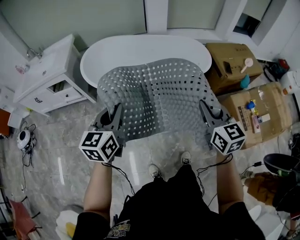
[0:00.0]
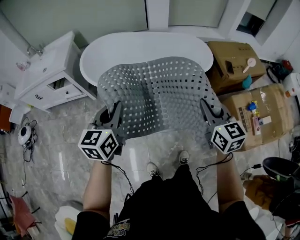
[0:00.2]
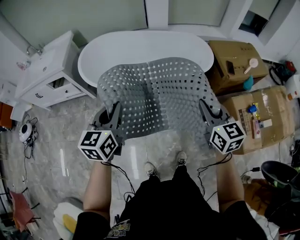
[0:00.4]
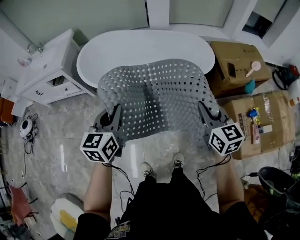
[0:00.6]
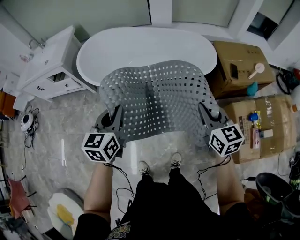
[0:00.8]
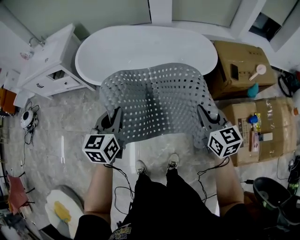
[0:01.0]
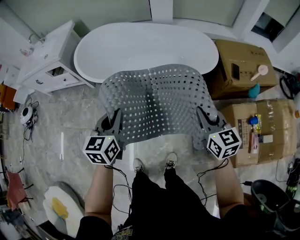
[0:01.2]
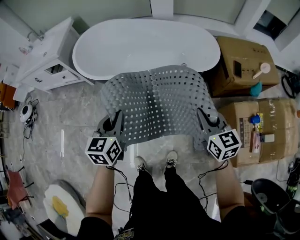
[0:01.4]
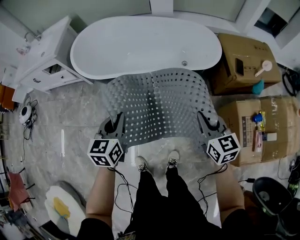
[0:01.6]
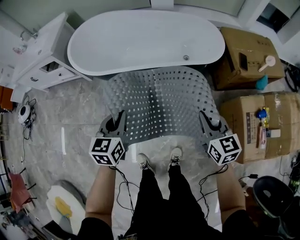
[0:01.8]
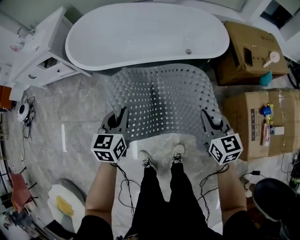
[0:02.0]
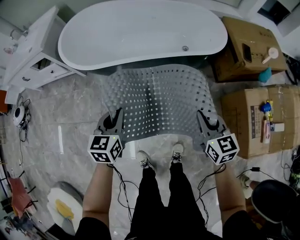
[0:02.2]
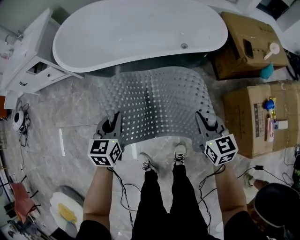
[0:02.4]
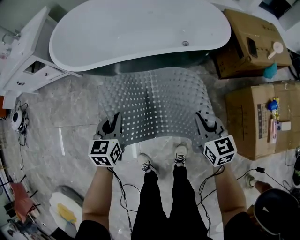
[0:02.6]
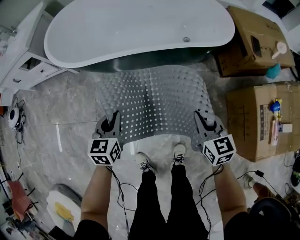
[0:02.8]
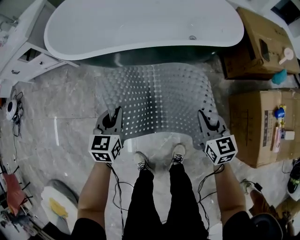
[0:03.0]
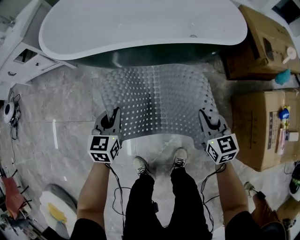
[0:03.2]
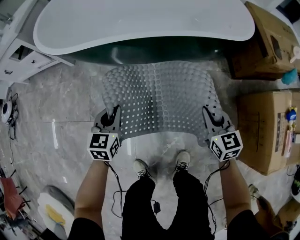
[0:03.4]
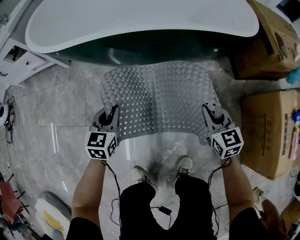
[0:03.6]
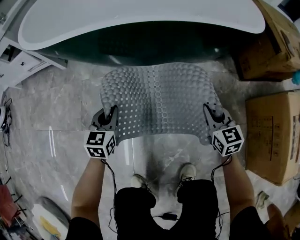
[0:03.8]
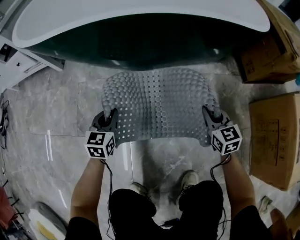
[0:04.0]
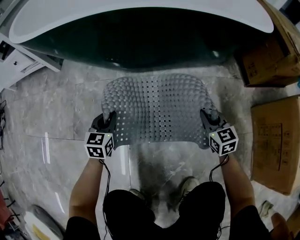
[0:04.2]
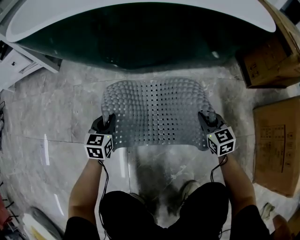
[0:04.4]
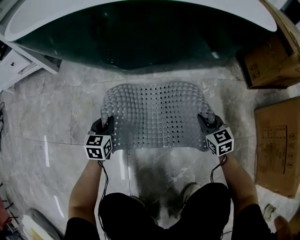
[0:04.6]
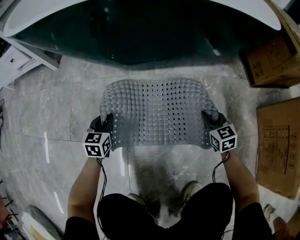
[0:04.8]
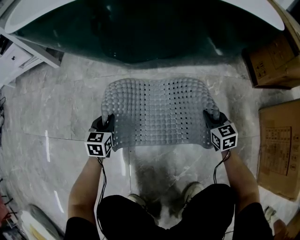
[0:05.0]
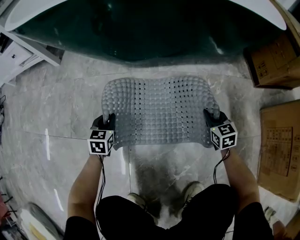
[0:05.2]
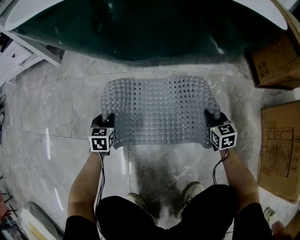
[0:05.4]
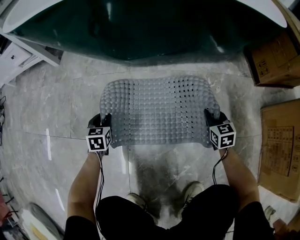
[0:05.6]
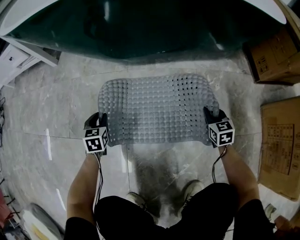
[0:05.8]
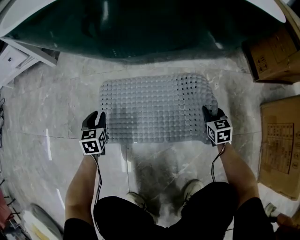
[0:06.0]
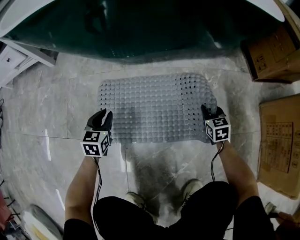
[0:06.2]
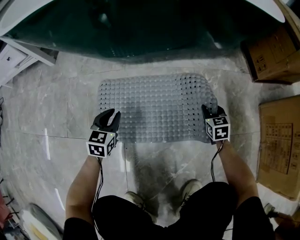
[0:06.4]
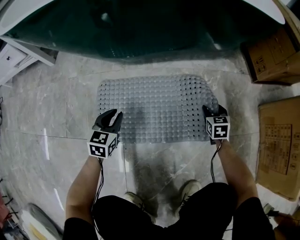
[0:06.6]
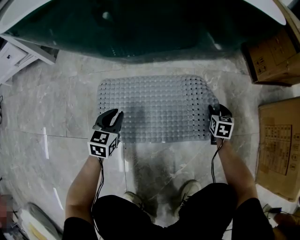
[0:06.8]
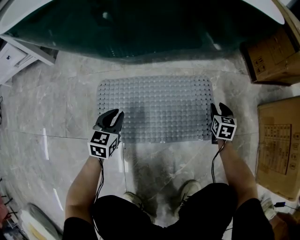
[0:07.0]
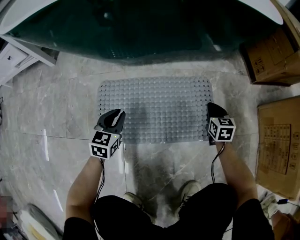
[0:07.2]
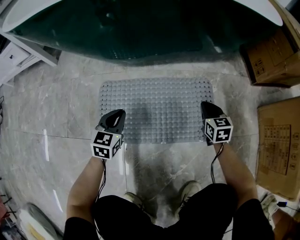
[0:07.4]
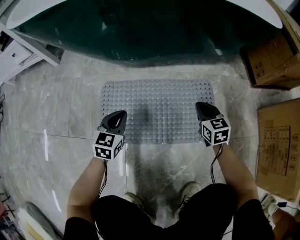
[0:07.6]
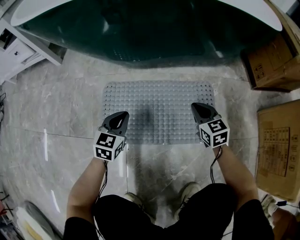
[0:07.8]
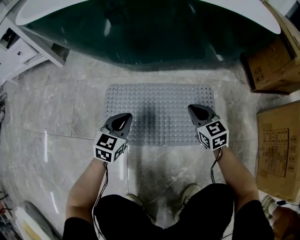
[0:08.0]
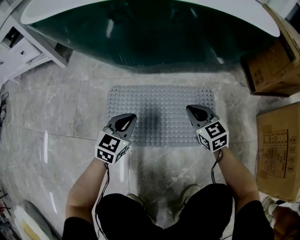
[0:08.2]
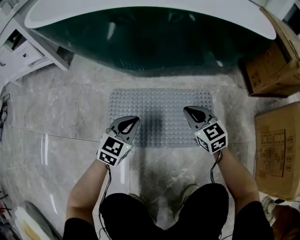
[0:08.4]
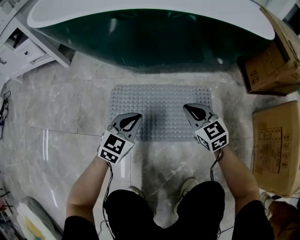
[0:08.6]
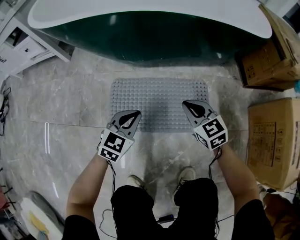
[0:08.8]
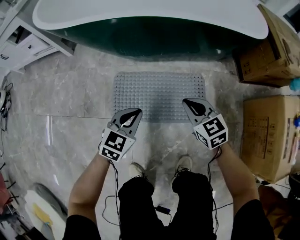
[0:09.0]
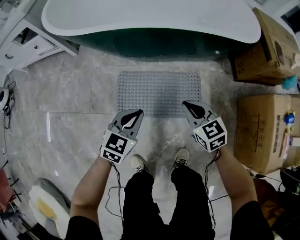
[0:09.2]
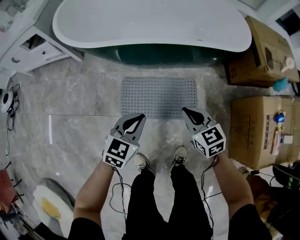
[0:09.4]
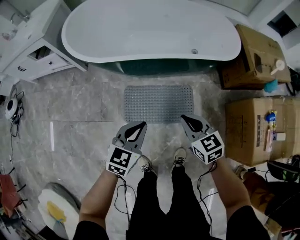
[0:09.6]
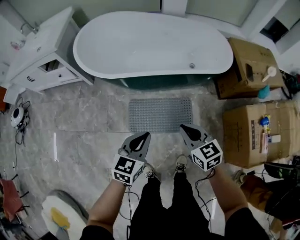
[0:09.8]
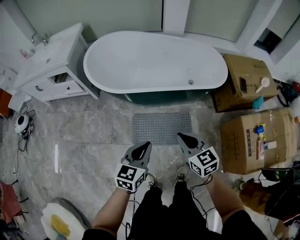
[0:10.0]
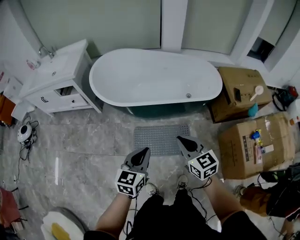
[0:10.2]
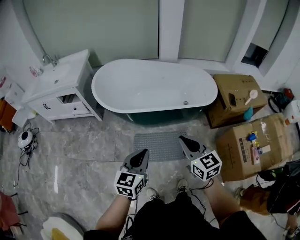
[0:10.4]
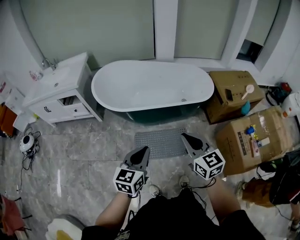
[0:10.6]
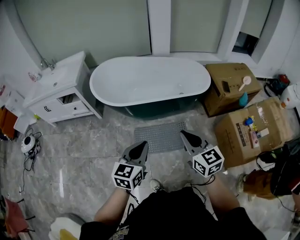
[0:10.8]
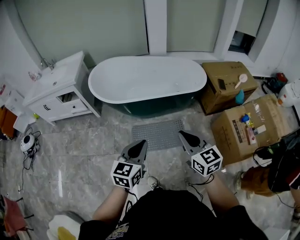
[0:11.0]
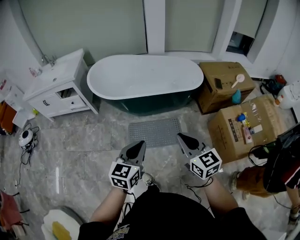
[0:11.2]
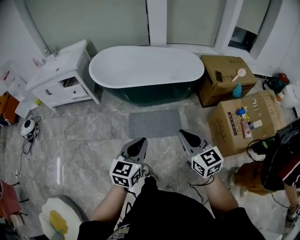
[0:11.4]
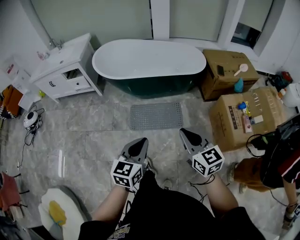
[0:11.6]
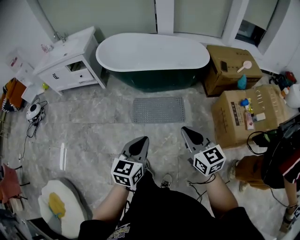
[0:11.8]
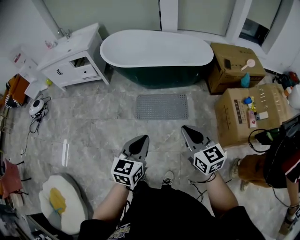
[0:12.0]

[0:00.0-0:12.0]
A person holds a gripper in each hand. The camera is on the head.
0:00.0 to 0:01.6: Both grippers move downward and to the right, some 25 cm.
0:01.6 to 0:03.0: The grippers both shift downward by approximately 25 cm.
0:03.0 to 0:04.4: The two grippers go about 40 cm downward.
0:04.4 to 0:06.0: The right gripper shifts some 10 cm downward, while the left gripper travels to the left and downward by approximately 10 cm, and opens.
0:06.0 to 0:07.6: The left gripper travels to the right by roughly 10 cm, rotates some 20 degrees, and closes, while the right gripper moves upward, approximately 5 cm, and opens and closes again.
0:07.6 to 0:09.0: Both grippers move upward, approximately 25 cm.
0:09.0 to 0:10.4: Both grippers travel together upward, roughly 60 cm. The right gripper rotates about 20 degrees. The left gripper rotates roughly 20 degrees.
0:10.4 to 0:12.0: The two grippers go roughly 35 cm backward.

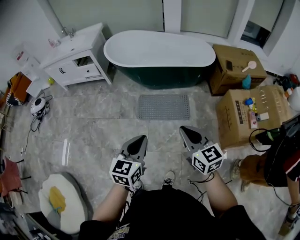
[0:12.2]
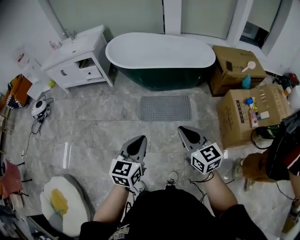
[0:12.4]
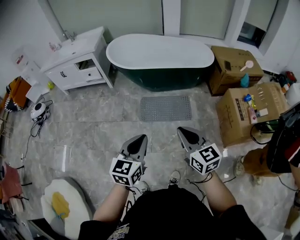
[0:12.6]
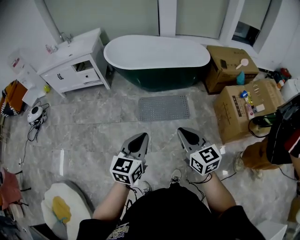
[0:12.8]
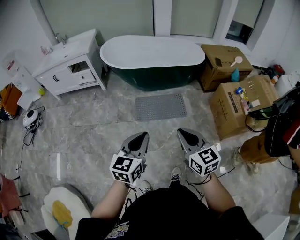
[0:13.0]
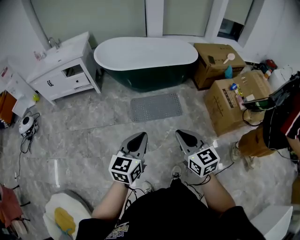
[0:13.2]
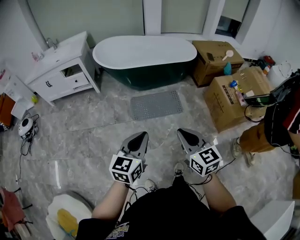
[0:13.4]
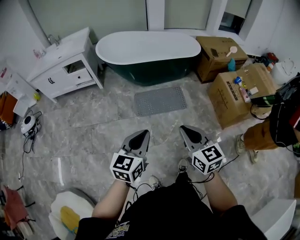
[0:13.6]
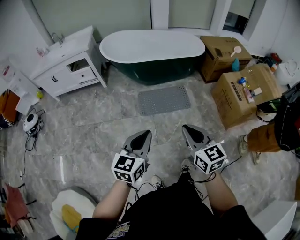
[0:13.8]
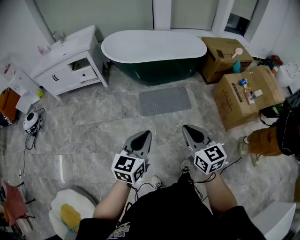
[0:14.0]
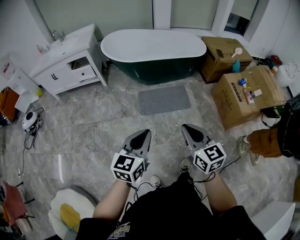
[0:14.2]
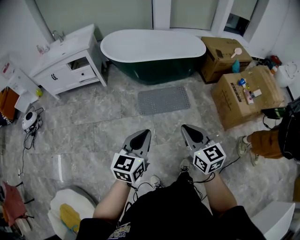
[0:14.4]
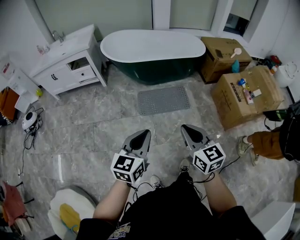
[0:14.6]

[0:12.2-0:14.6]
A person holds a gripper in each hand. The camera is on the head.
0:12.2 to 0:13.4: The grippers both shift to the left and backward by some 15 cm.
0:13.4 to 0:14.6: The grippers stay close to where they were, moving slightly.

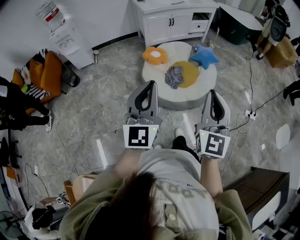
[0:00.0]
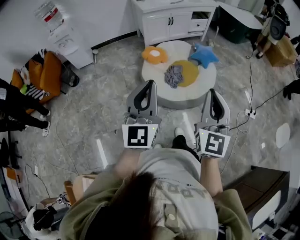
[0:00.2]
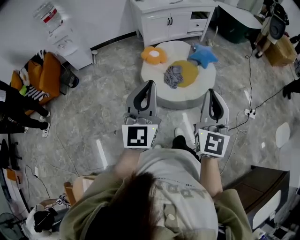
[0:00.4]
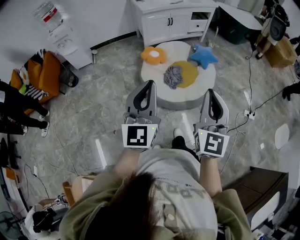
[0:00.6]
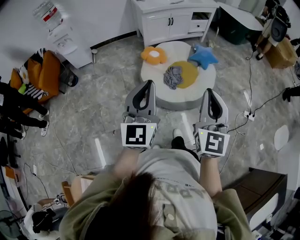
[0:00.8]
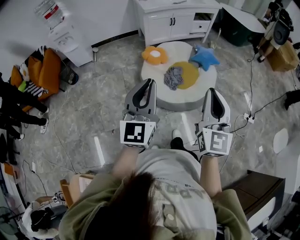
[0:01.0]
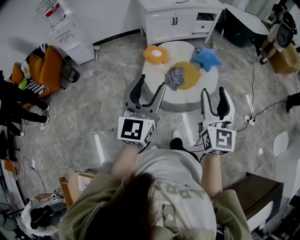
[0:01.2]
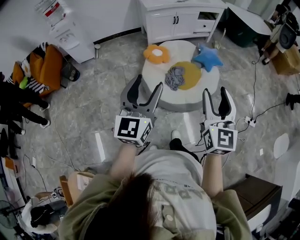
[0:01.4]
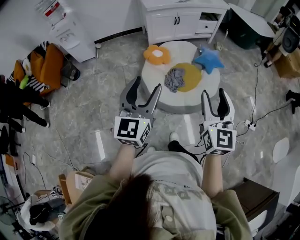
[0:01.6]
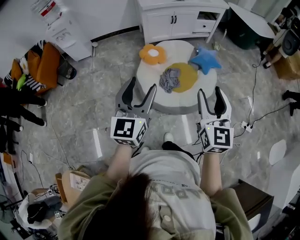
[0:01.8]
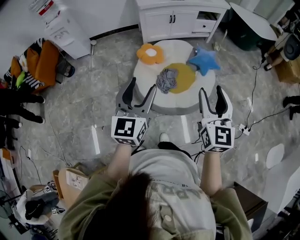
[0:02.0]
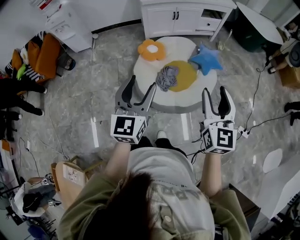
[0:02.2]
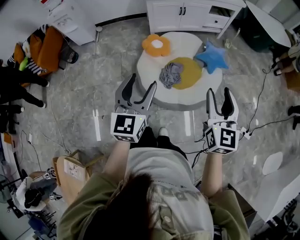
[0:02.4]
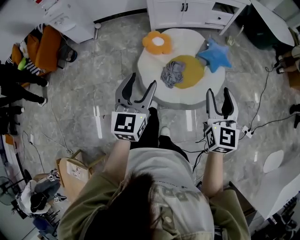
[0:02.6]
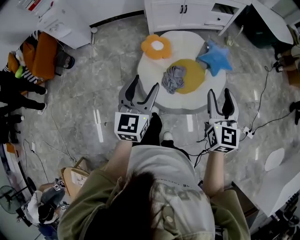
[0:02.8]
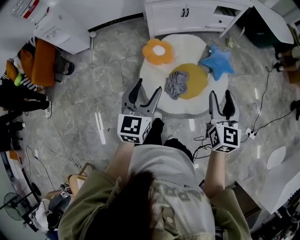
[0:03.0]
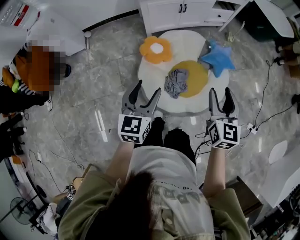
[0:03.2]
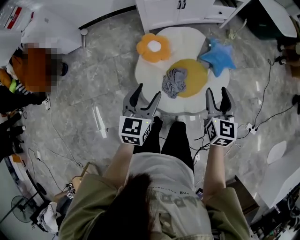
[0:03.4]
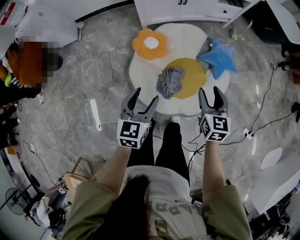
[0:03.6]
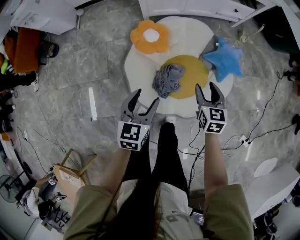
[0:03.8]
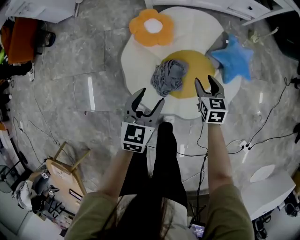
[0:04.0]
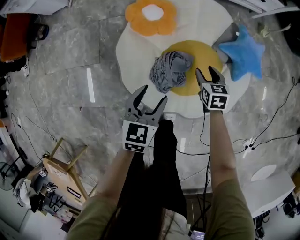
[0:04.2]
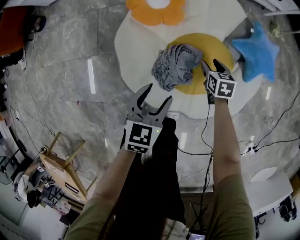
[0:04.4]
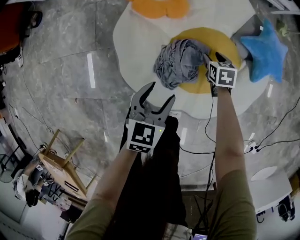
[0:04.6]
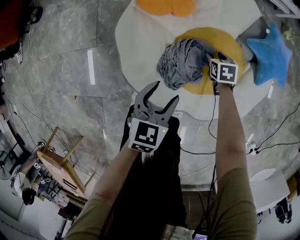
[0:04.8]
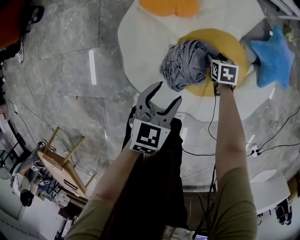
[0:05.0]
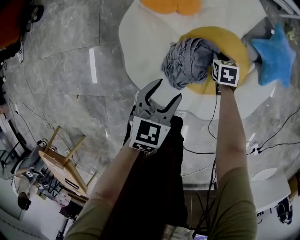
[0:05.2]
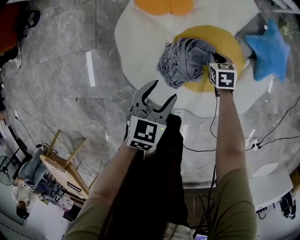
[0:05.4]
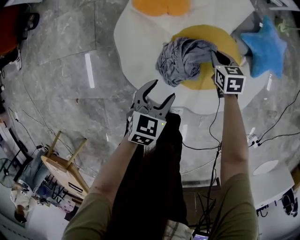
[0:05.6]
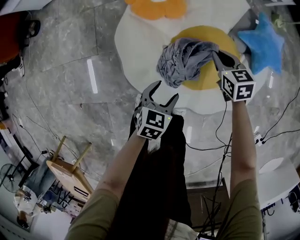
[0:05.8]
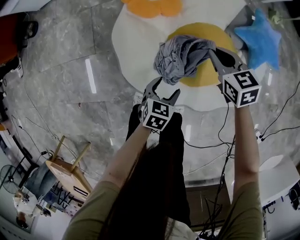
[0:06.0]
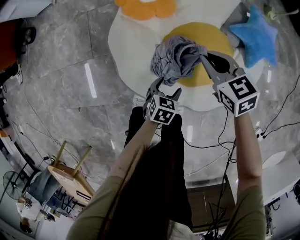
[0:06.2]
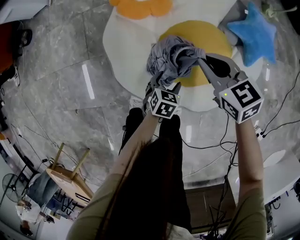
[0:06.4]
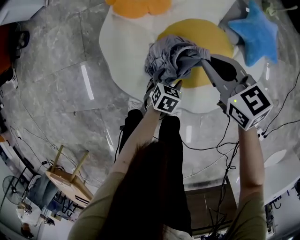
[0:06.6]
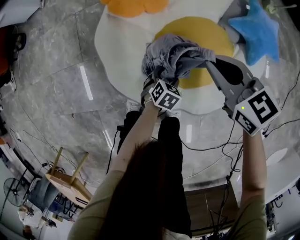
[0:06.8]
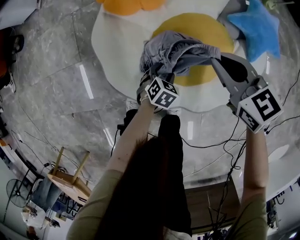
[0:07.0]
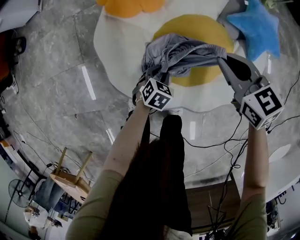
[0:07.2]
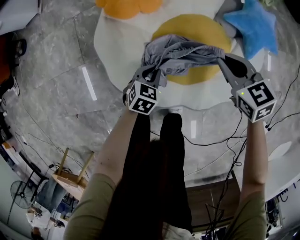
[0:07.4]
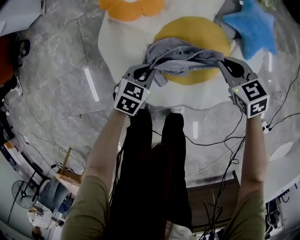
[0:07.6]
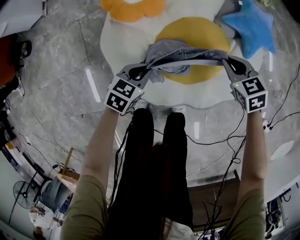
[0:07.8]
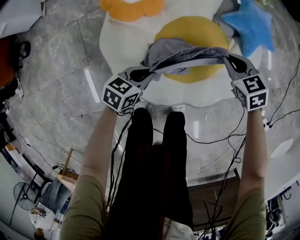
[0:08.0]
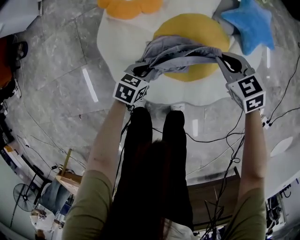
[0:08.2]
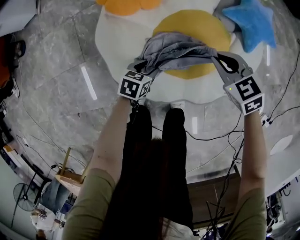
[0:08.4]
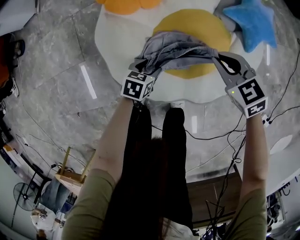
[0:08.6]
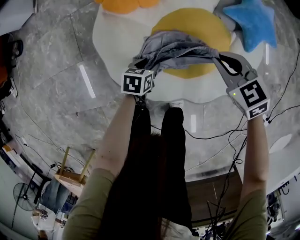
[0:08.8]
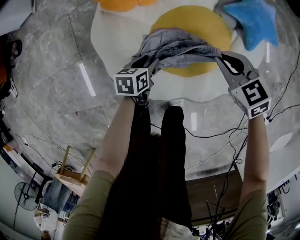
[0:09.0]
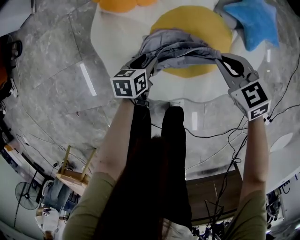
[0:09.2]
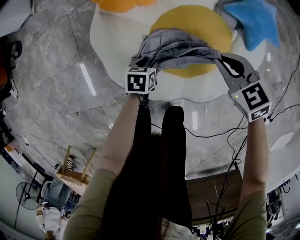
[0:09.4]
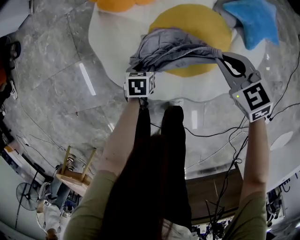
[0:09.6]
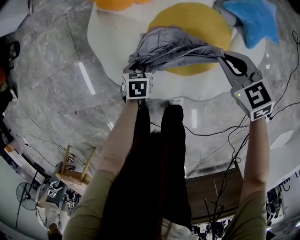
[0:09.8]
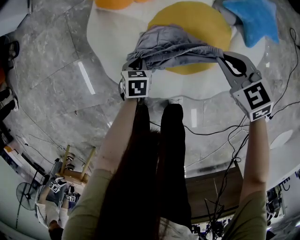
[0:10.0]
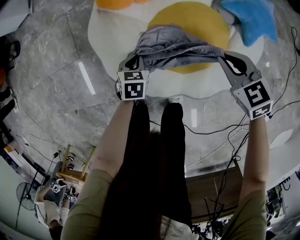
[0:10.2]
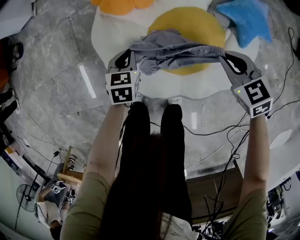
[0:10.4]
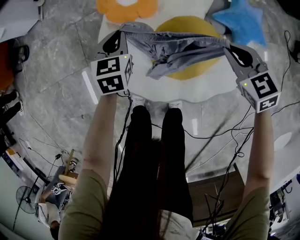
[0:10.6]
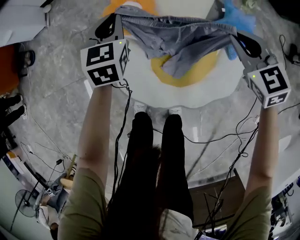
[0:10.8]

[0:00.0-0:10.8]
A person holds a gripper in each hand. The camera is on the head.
0:00.0 to 0:01.6: The left gripper goes approximately 10 cm forward, and opens its fingers. Meanwhile the right gripper goes some 15 cm forward and to the right, and opens up.
0:01.6 to 0:03.0: The right gripper heads forward, covering some 25 cm; the left gripper shifts about 25 cm forward and downward.
0:03.0 to 0:04.6: Both grippers travel together downward, approximately 60 cm. The right gripper tips its fingers downward by some 50 degrees. The left gripper changes its angle by some 30 degrees.
0:04.6 to 0:06.2: The left gripper moves downward, approximately 15 cm. The right gripper heads upward, covering about 20 cm, rotates roughly 30 degrees, and closes.
0:06.2 to 0:07.8: The left gripper heads forward, to the left and upward, covering some 10 cm, turns by about 20 degrees, and closes. Meanwhile the right gripper heads to the right and downward, covering roughly 15 cm.
0:07.8 to 0:09.2: The right gripper ends up some 5 cm from where it was. Meanwhile the left gripper is displaced downward by about 10 cm, changes its angle by roughly 40 degrees, and opens up.
0:09.2 to 0:10.8: The left gripper is displaced upward and forward by some 35 cm, swivels some 50 degrees, and closes its fingers, while the right gripper heads upward and forward, covering some 25 cm.
